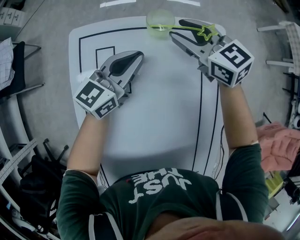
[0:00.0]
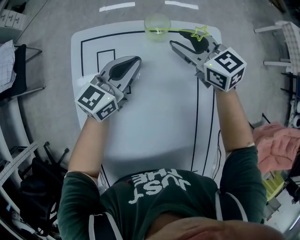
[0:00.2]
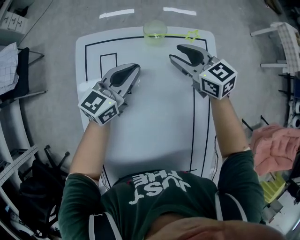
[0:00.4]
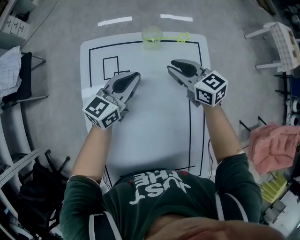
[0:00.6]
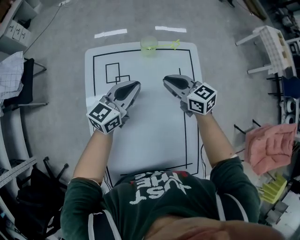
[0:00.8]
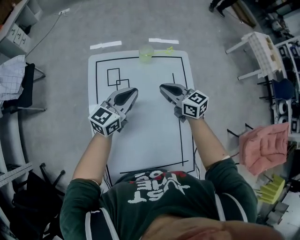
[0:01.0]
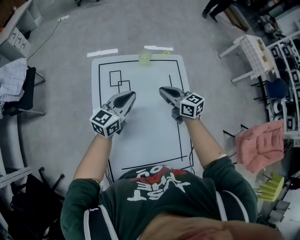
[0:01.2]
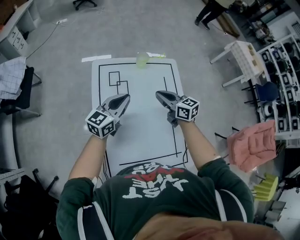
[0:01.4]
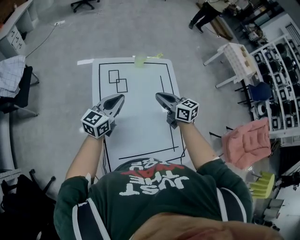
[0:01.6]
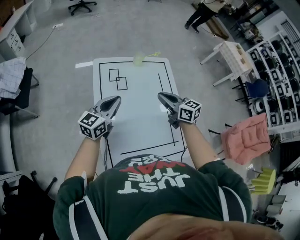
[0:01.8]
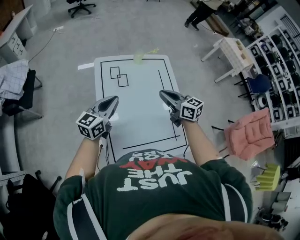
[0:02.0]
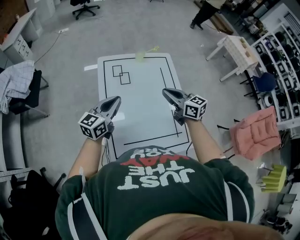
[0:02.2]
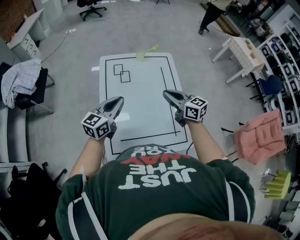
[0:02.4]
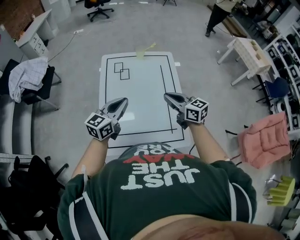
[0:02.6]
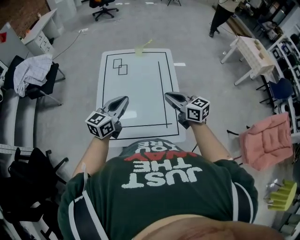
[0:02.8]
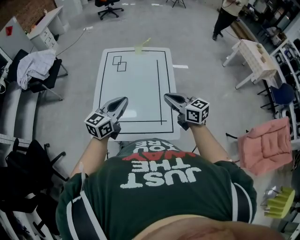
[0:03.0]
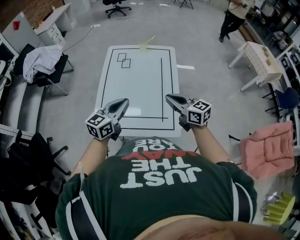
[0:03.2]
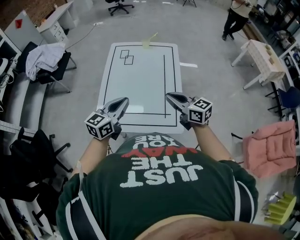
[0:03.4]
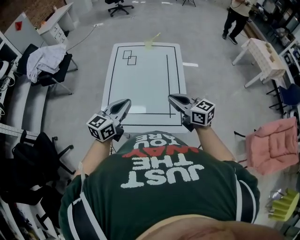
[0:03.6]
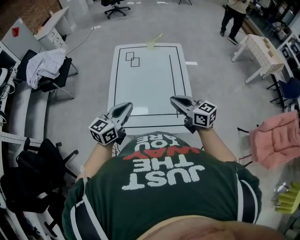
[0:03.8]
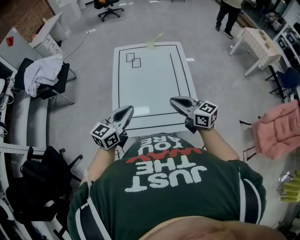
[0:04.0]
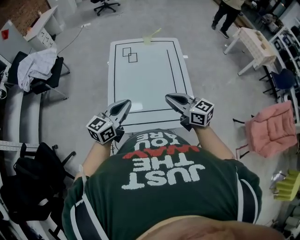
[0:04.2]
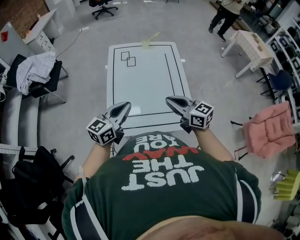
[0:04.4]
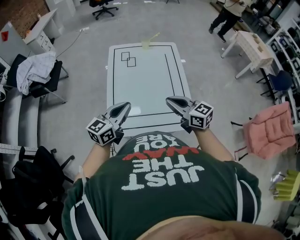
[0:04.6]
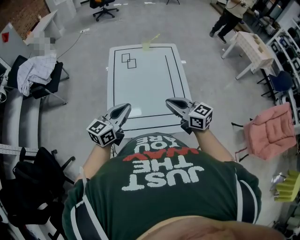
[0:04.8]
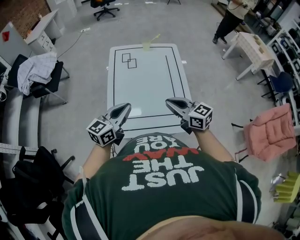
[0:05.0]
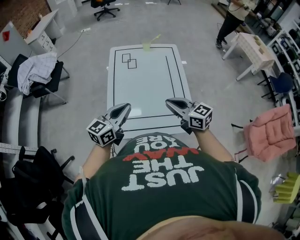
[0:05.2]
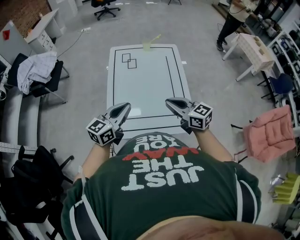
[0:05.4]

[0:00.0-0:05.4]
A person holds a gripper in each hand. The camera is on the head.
0.0 to 1.4 s: The right gripper shifts about 30 cm backward and upward, turns by about 20 degrees, and closes its fingers. The left gripper heads backward, upward and to the left, covering about 30 cm.
1.4 to 2.8 s: The right gripper is displaced backward and to the right by roughly 30 cm, while the left gripper moves backward, about 25 cm.
2.8 to 4.0 s: Both grippers travel together backward and to the left, some 15 cm.
4.0 to 5.4 s: The grippers stay close to where they were, moving slightly.

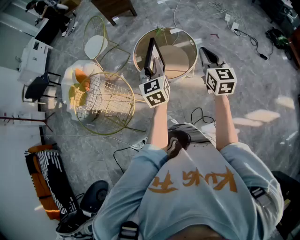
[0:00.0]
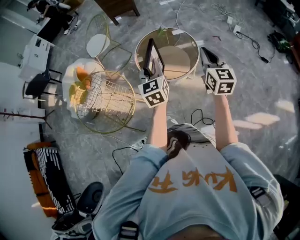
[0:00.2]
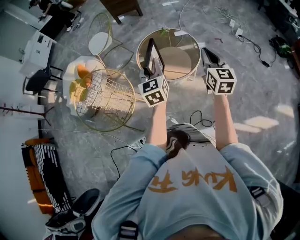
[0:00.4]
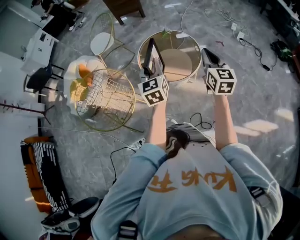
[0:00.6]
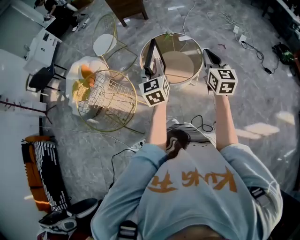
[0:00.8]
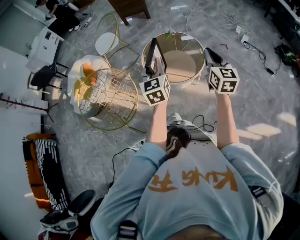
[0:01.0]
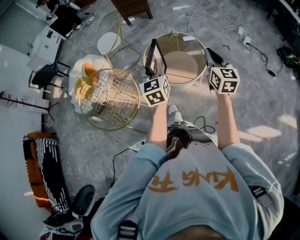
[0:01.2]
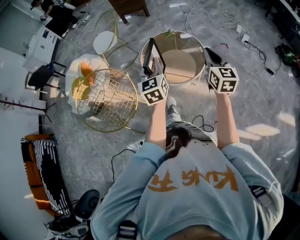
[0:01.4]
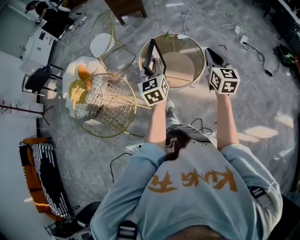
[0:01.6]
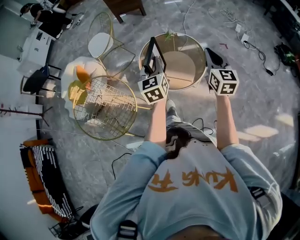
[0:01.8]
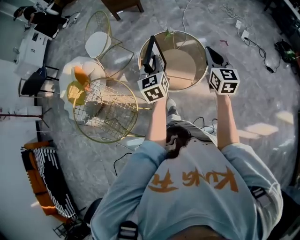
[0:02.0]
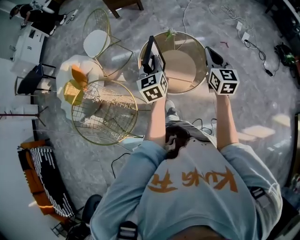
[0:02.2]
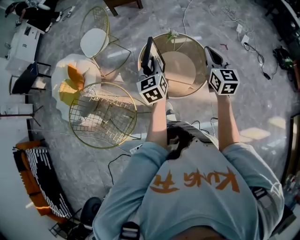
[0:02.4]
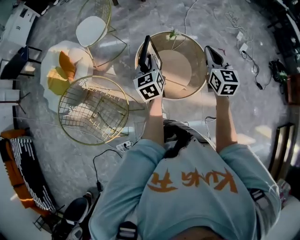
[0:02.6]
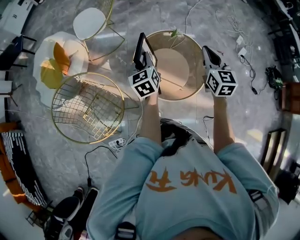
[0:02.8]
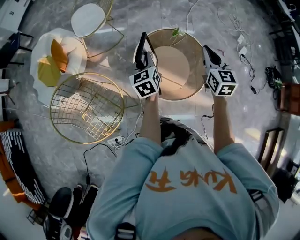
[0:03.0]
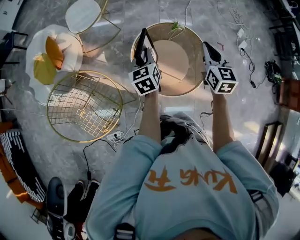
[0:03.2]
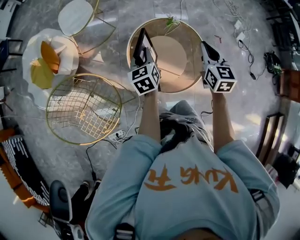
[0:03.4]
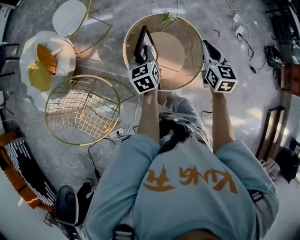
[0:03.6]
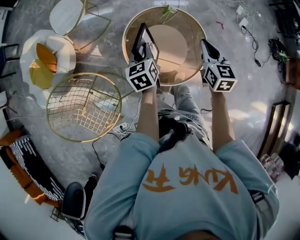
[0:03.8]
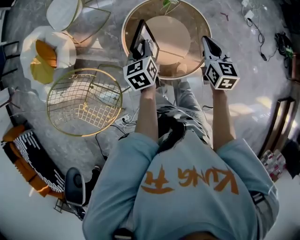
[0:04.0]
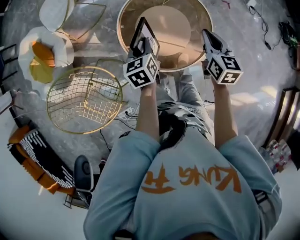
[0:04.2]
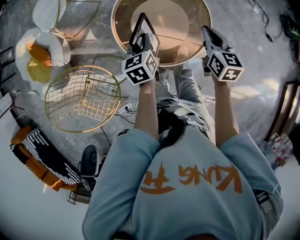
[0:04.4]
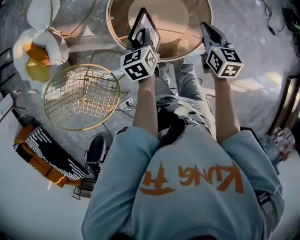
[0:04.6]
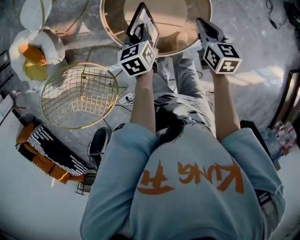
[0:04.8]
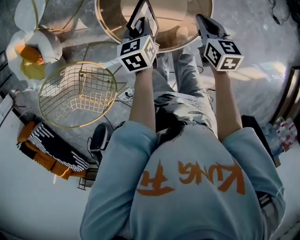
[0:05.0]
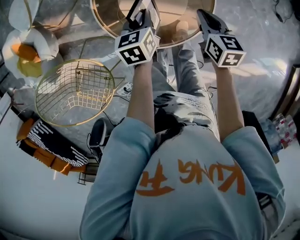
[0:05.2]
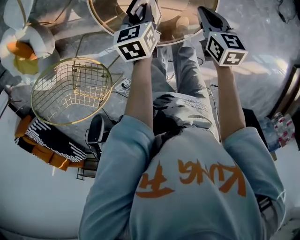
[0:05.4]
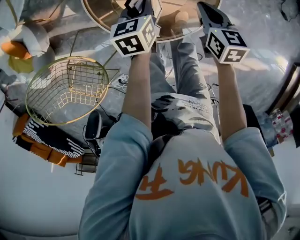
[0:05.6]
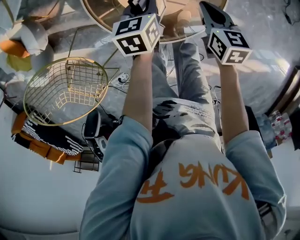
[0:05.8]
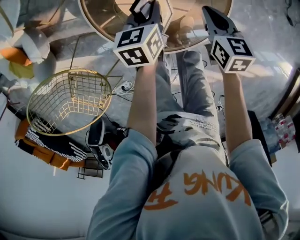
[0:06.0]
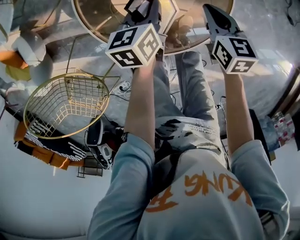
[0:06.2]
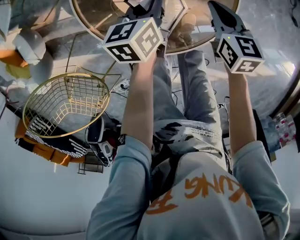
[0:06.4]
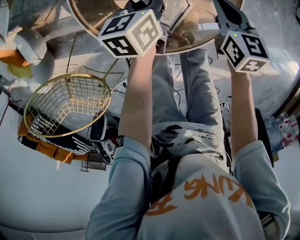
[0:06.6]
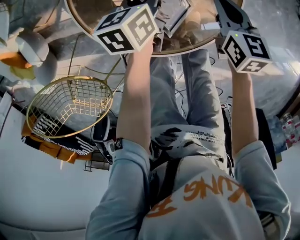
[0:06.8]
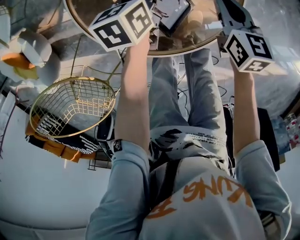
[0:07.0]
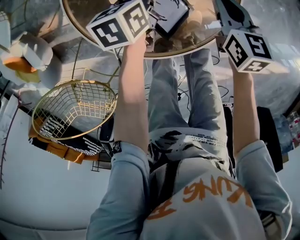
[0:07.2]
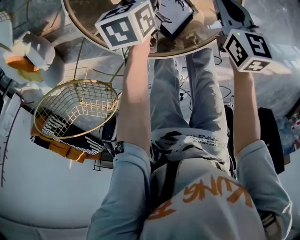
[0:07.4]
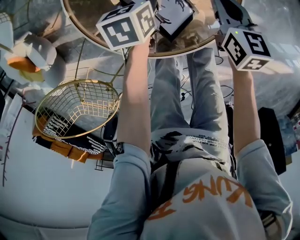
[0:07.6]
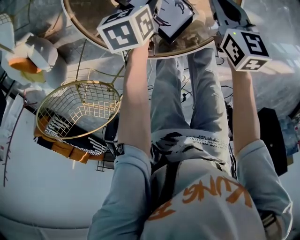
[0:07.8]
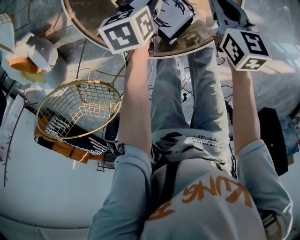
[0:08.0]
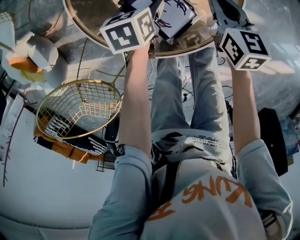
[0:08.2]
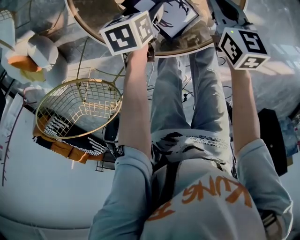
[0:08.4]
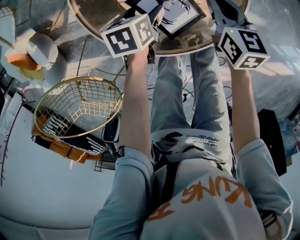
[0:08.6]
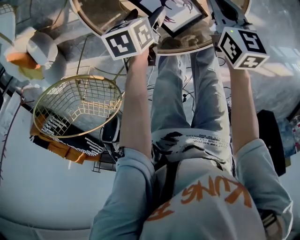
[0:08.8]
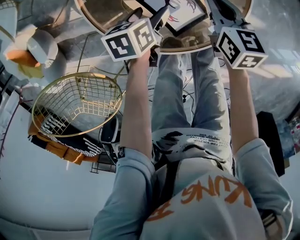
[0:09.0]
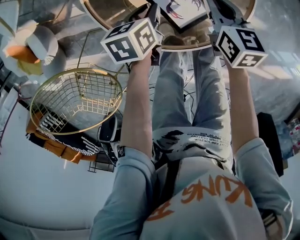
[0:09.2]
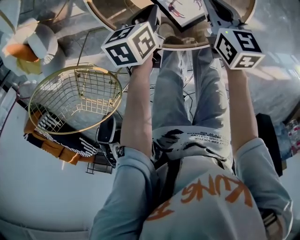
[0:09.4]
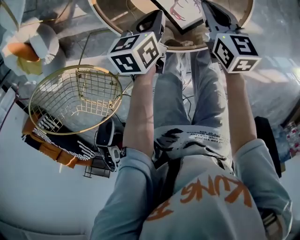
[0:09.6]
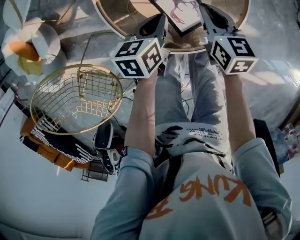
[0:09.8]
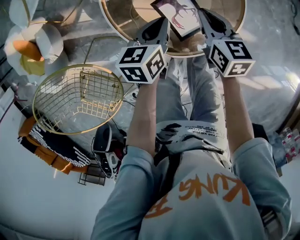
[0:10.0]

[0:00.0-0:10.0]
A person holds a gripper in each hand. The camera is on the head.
0.0 to 1.4 s: There are only small adjustments of the grippers.
1.4 to 2.8 s: The left gripper goes roughly 30 cm forward and downward, and rotates about 20 degrees, while the right gripper goes approximately 30 cm forward.
2.8 to 4.2 s: The grippers both shift downward and to the right by some 15 cm. The right gripper changes its angle by approximately 20 degrees, while the left gripper swivels roughly 20 degrees.
4.2 to 5.8 s: The right gripper goes approximately 20 cm downward. The left gripper heads downward and to the right, covering about 20 cm.
5.8 to 7.2 s: The left gripper is displaced downward by about 10 cm; the right gripper travels downward by roughly 5 cm.
7.2 to 8.6 s: The left gripper moves backward, roughly 5 cm, and opens its fingers.
8.6 to 10.0 s: The right gripper moves to the left and upward, some 10 cm. Meanwhile the left gripper travels upward by roughly 15 cm, rotates some 30 degrees, and closes its fingers.

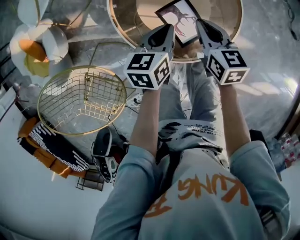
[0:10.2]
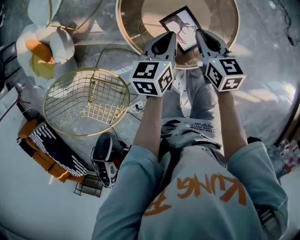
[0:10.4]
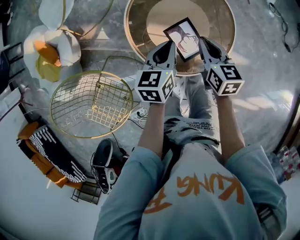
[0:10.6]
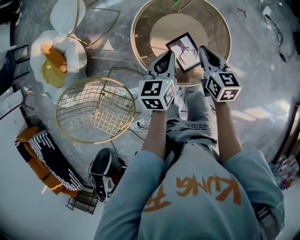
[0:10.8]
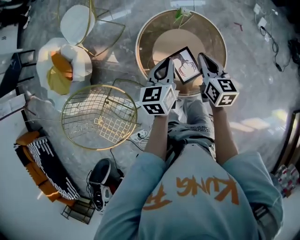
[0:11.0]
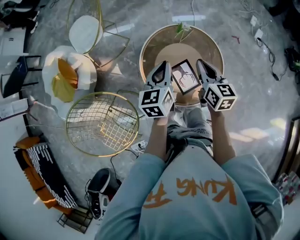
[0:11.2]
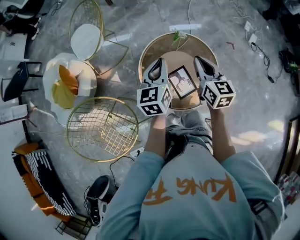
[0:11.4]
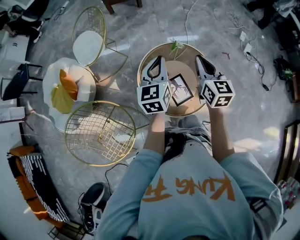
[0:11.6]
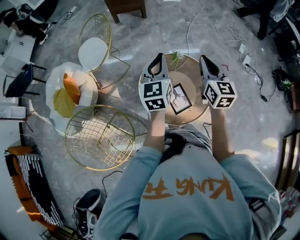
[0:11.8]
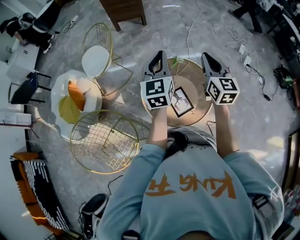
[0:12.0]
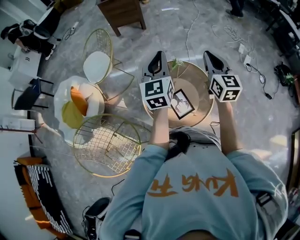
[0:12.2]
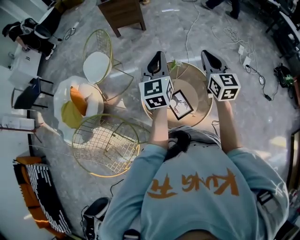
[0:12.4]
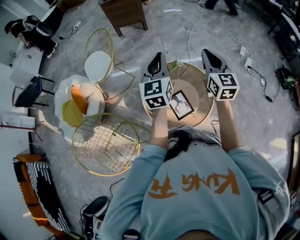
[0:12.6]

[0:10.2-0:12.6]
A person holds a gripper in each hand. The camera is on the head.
10.2 to 11.4 s: The two grippers go roughly 25 cm upward. The right gripper swivels some 20 degrees; the left gripper turns by about 30 degrees.
11.4 to 12.6 s: The grippers both shift upward by roughly 15 cm.

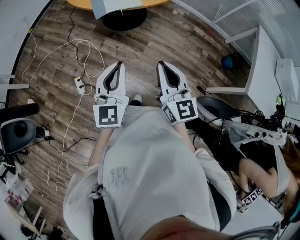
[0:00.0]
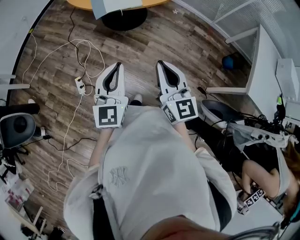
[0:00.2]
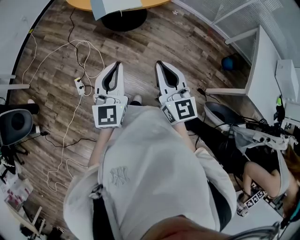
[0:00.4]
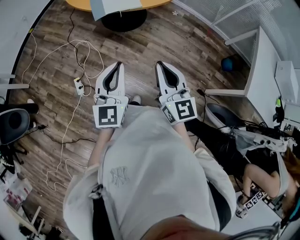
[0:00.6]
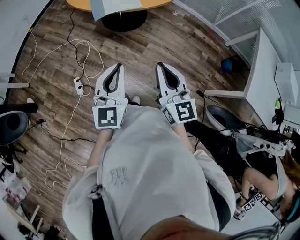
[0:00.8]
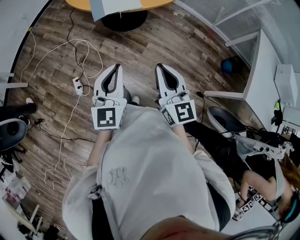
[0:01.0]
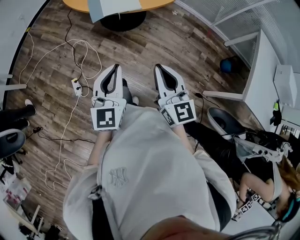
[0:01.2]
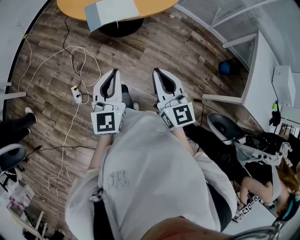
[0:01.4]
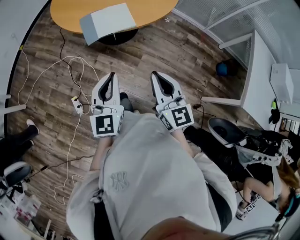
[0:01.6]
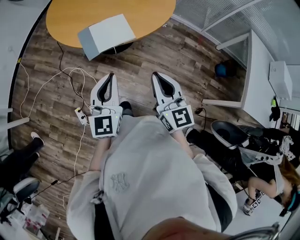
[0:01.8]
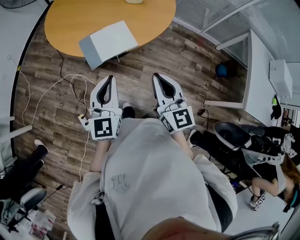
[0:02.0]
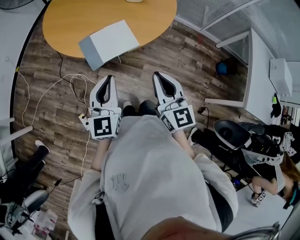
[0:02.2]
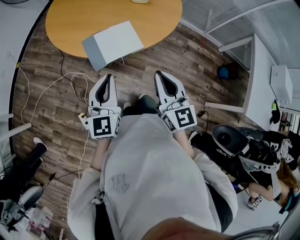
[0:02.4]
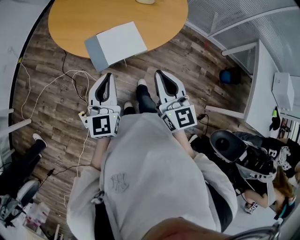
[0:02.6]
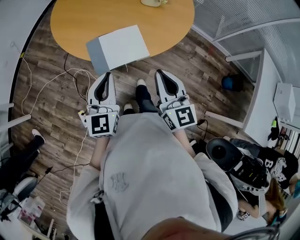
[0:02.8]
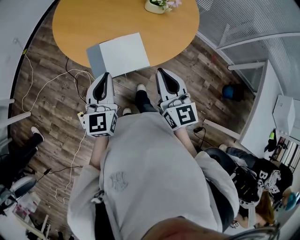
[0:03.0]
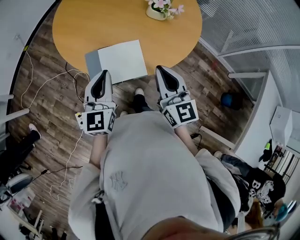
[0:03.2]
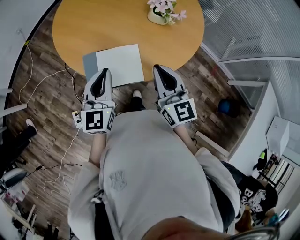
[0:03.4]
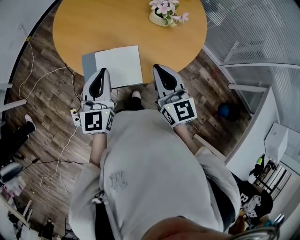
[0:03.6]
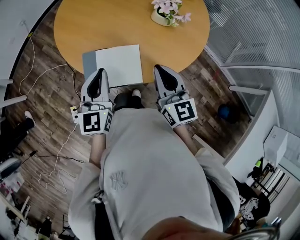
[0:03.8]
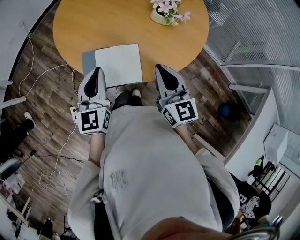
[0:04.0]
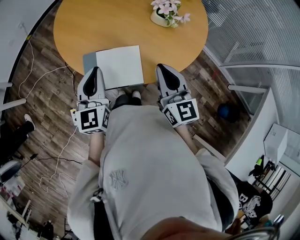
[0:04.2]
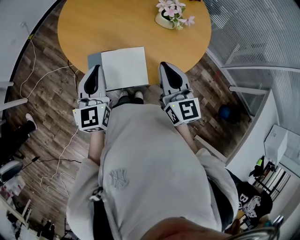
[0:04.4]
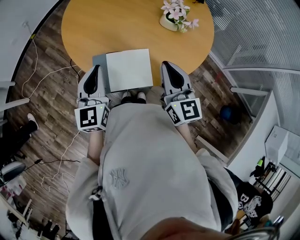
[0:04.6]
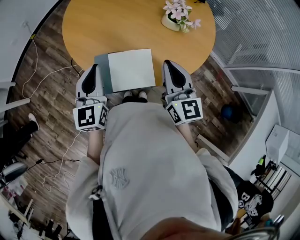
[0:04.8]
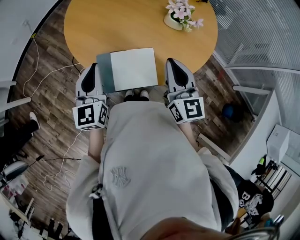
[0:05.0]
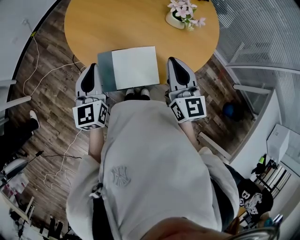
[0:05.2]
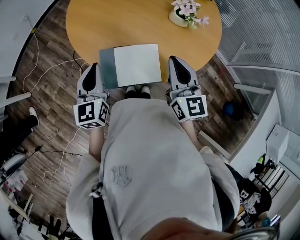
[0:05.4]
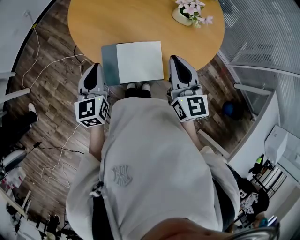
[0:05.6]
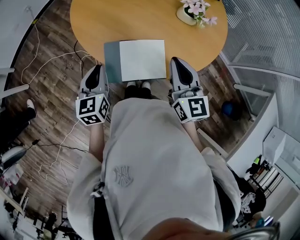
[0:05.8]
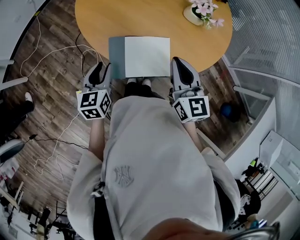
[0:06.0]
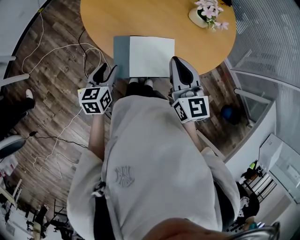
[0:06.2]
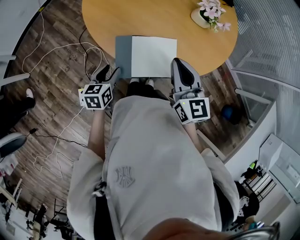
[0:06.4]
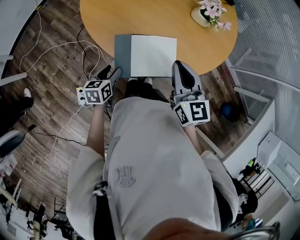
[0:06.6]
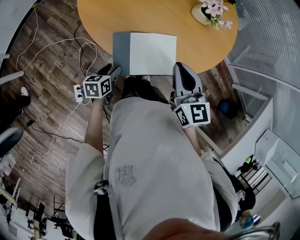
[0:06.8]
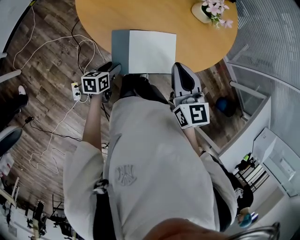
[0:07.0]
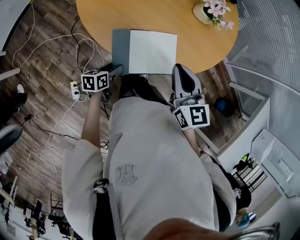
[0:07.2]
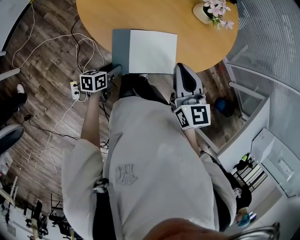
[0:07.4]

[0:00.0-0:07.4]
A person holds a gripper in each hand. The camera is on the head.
0.0 to 1.4 s: The grippers both shift forward by roughly 10 cm.
1.4 to 3.0 s: Both grippers move forward, some 35 cm.
3.0 to 4.4 s: Both grippers travel together forward, roughly 10 cm.
4.4 to 6.0 s: The left gripper travels downward and to the left by some 15 cm, swivels approximately 20 degrees, and opens, while the right gripper shifts roughly 10 cm to the left.
6.0 to 7.4 s: The left gripper moves downward, about 20 cm, and rotates about 40 degrees.
